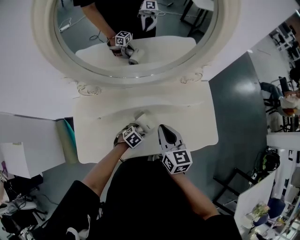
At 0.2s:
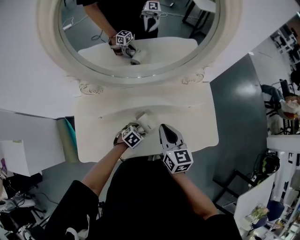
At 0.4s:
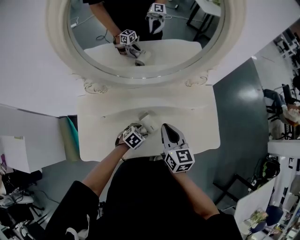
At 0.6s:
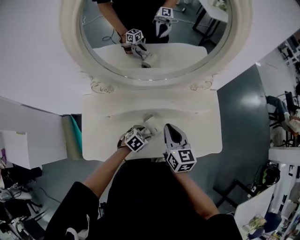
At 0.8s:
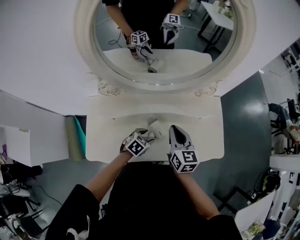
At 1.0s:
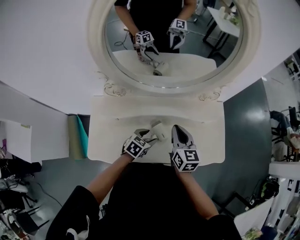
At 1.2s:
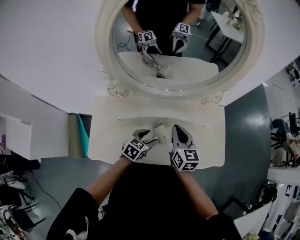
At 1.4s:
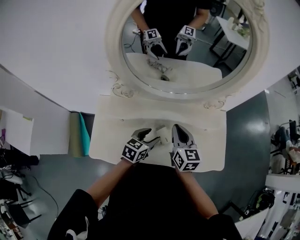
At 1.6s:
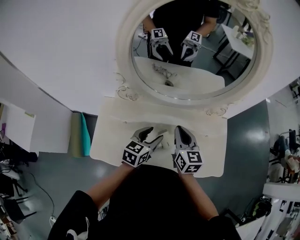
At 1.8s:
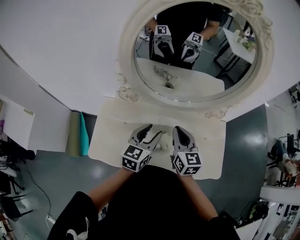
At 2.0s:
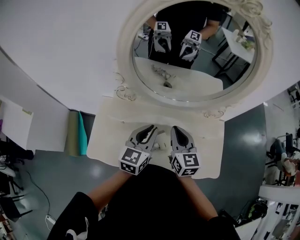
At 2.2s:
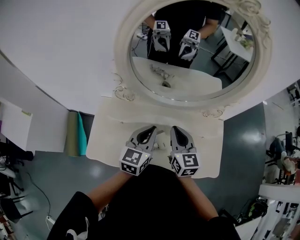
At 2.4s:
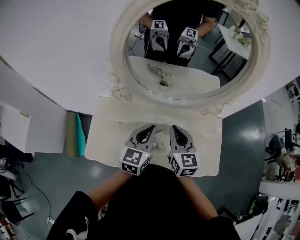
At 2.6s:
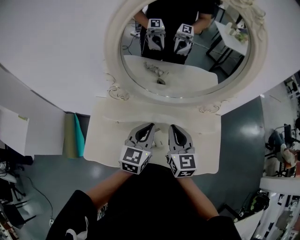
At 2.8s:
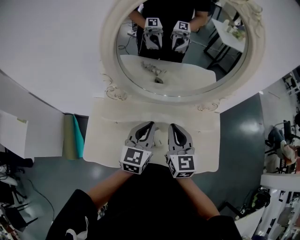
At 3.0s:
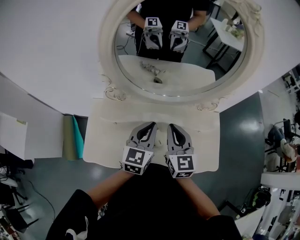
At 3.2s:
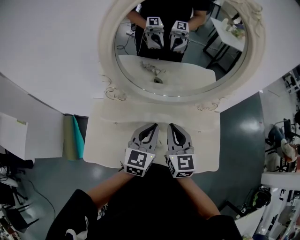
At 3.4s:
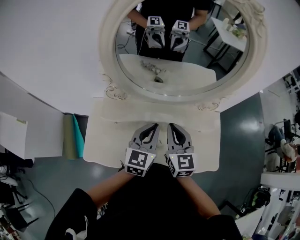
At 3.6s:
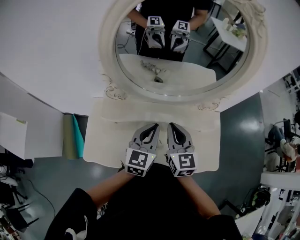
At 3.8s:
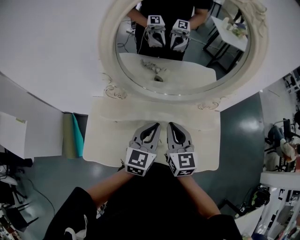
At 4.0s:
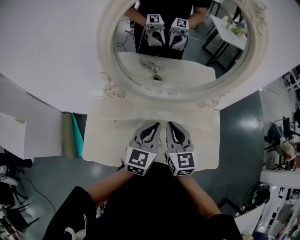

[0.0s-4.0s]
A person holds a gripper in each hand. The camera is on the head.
0.0s to 1.4s: The left gripper shifts roughly 20 cm upward, and angles its fingers upward, by approximately 30 degrees, while the right gripper is displaced to the left by approximately 5 cm.
1.4s to 2.6s: The left gripper is displaced upward by about 15 cm, turns by about 30 degrees, and closes. The right gripper shifts about 5 cm upward.
2.6s to 4.0s: The grippers stay close to where they were, moving slightly.

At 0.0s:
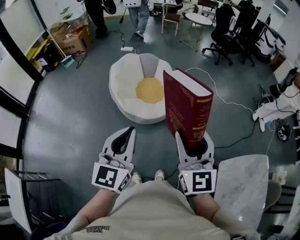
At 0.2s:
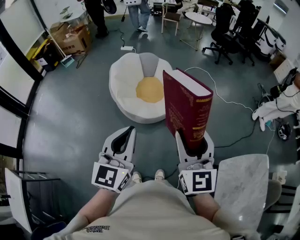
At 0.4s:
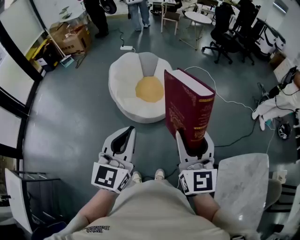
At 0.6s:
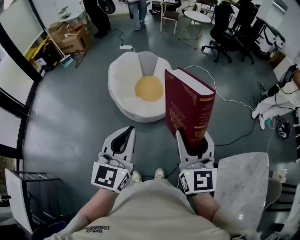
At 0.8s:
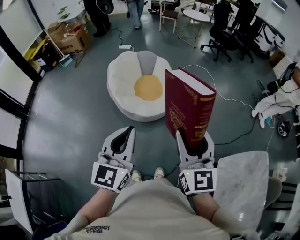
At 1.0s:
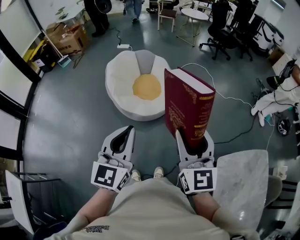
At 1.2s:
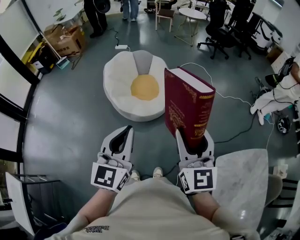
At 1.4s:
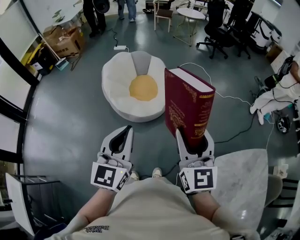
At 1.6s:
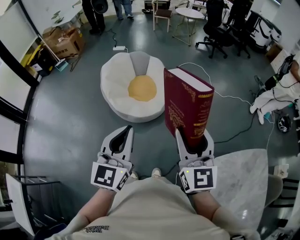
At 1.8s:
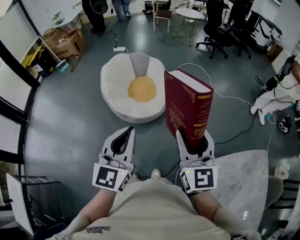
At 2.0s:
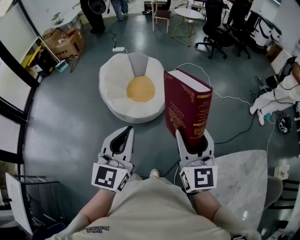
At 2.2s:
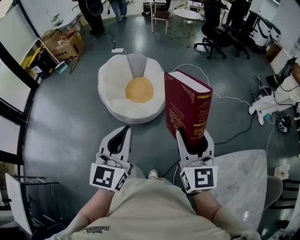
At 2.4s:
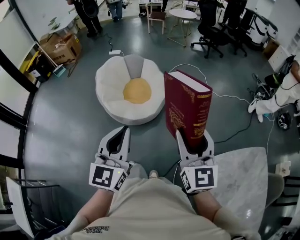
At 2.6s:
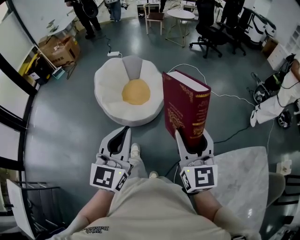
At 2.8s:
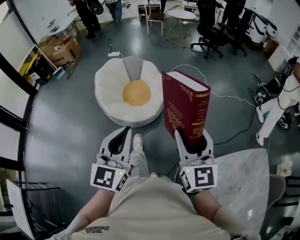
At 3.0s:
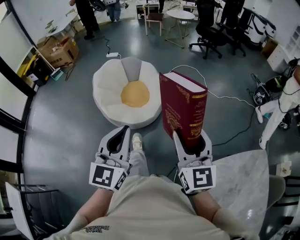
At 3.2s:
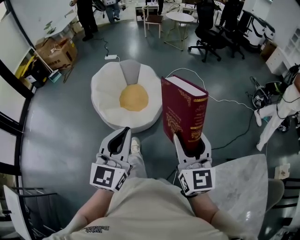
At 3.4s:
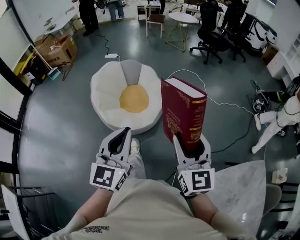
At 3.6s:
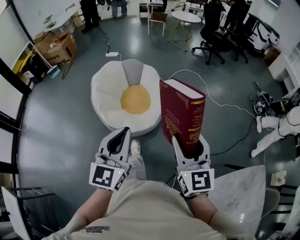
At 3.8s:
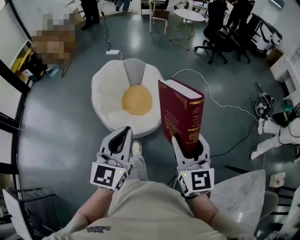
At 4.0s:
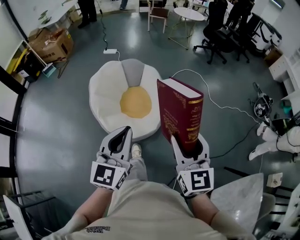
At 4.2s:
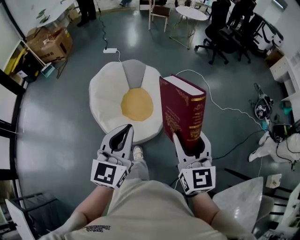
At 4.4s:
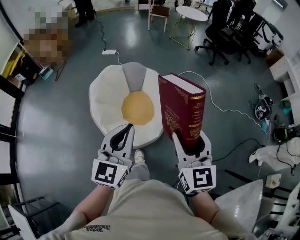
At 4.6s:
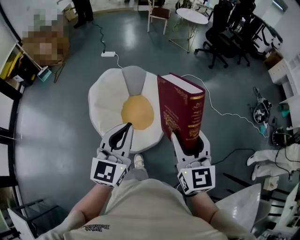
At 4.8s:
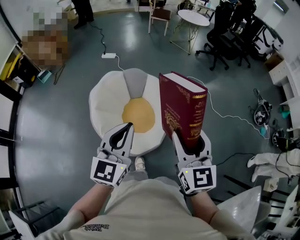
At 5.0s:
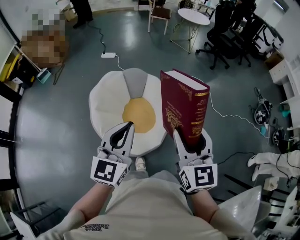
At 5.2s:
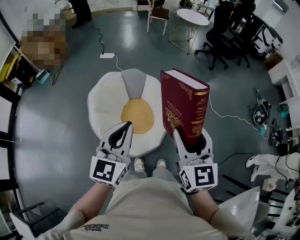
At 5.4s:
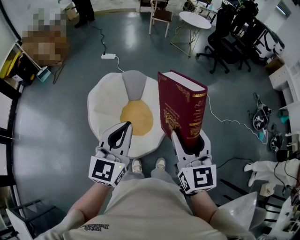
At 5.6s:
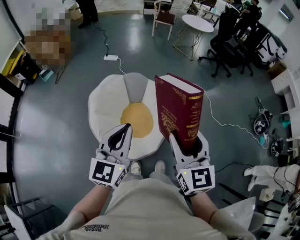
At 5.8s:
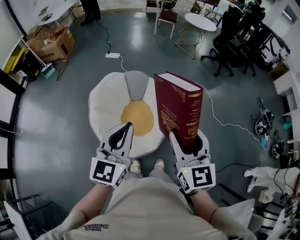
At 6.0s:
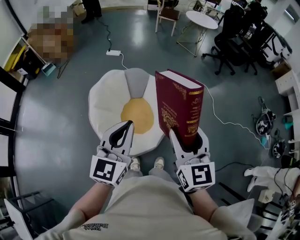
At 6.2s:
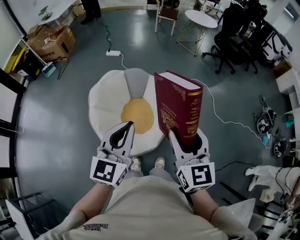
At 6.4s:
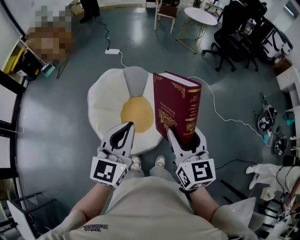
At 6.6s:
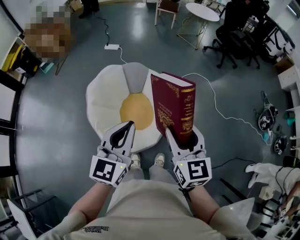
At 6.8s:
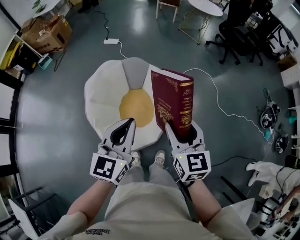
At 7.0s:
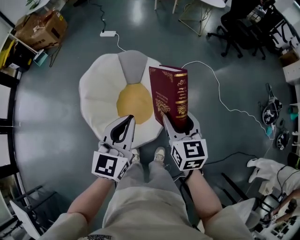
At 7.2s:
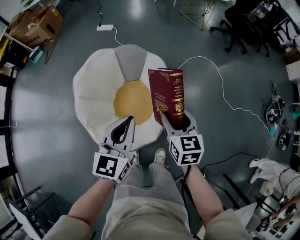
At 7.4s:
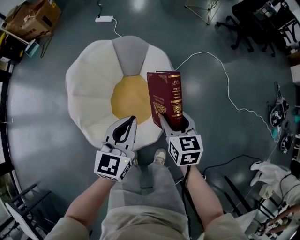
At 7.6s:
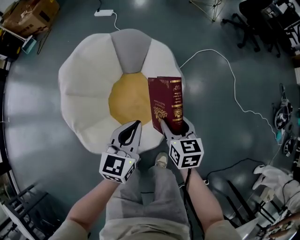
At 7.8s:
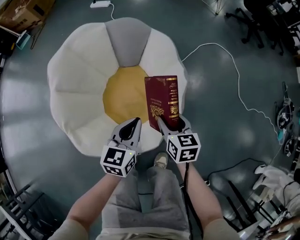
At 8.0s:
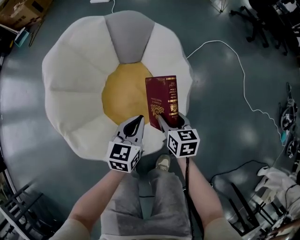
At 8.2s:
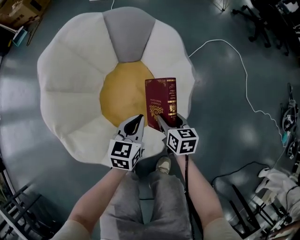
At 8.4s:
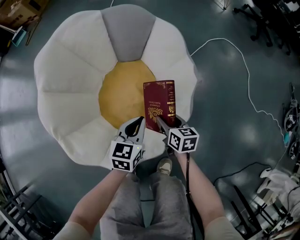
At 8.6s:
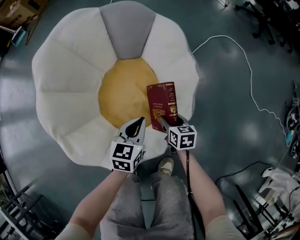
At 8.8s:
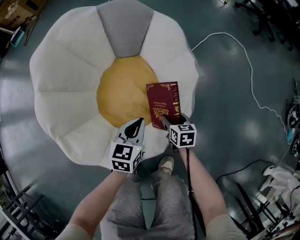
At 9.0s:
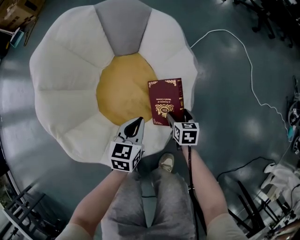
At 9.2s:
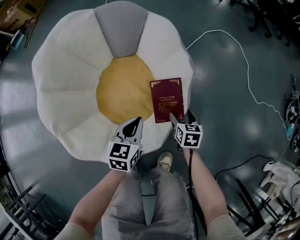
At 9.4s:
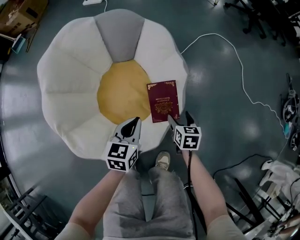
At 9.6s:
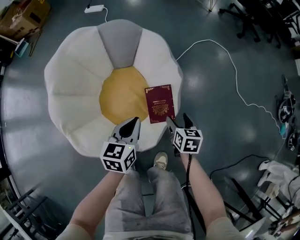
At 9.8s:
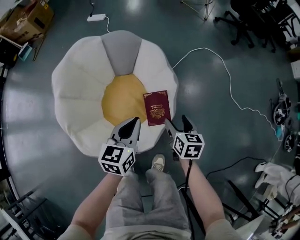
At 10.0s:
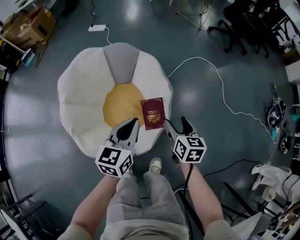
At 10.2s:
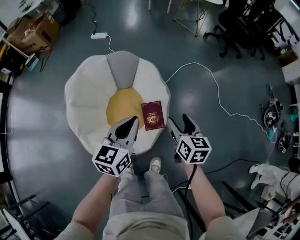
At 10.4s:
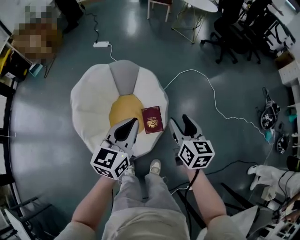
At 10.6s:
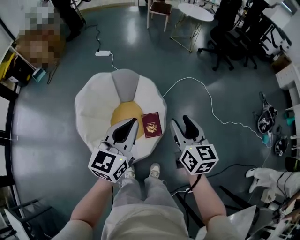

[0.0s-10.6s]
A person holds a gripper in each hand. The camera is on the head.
0.0s to 1.6s: The grippers both shift to the right by roughly 10 cm.
1.6s to 3.0s: The grippers stay close to where they were, moving slightly.
3.0s to 4.6s: The two grippers travel together, forward and to the left, roughly 40 cm.
4.6s to 6.0s: Both grippers travel together forward, roughly 10 cm.
6.0s to 7.6s: Both grippers travel together downward, approximately 50 cm. The right gripper swivels about 30 degrees. Meanwhile the left gripper swivels roughly 20 degrees.
7.6s to 9.0s: Both grippers travel together downward, roughly 35 cm.
9.0s to 10.6s: Both grippers move upward, some 70 cm. The right gripper angles its fingers upward, by some 40 degrees, and closes, while the left gripper turns by about 30 degrees.

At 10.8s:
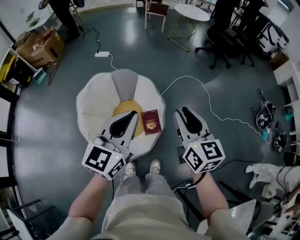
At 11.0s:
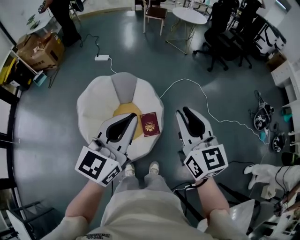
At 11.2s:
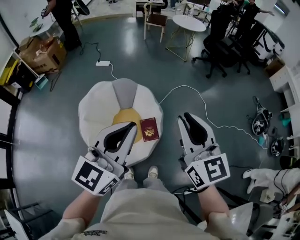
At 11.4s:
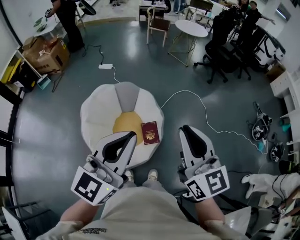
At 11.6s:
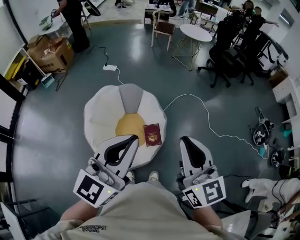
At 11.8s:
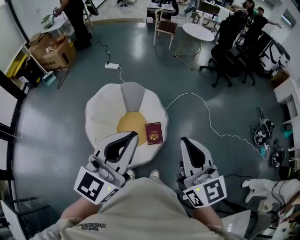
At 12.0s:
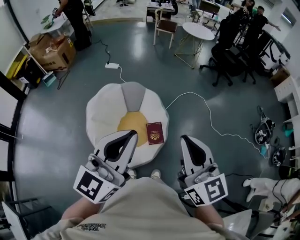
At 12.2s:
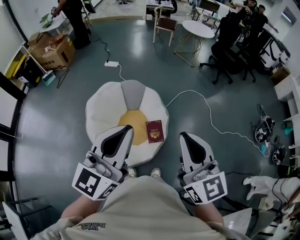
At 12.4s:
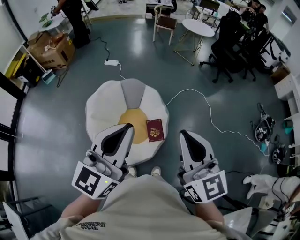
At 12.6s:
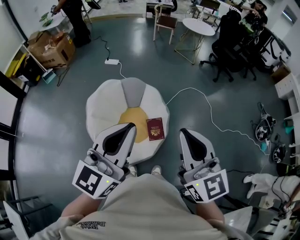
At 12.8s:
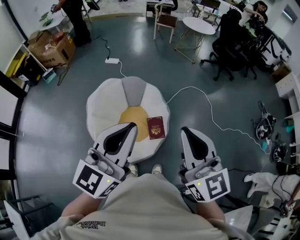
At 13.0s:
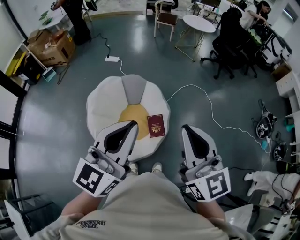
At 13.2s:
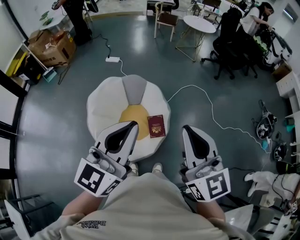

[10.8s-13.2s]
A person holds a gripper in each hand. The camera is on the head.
10.8s to 12.0s: Both grippers move upward and backward, roughly 15 cm. The right gripper closes its fingers.
12.0s to 13.2s: The grippers make only small movements.

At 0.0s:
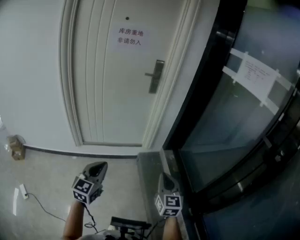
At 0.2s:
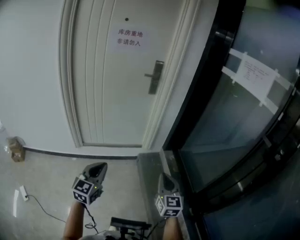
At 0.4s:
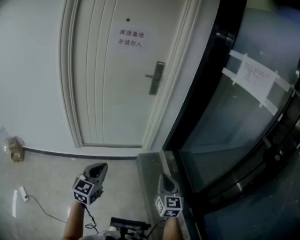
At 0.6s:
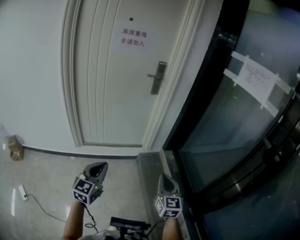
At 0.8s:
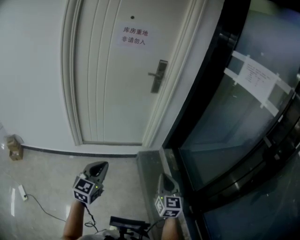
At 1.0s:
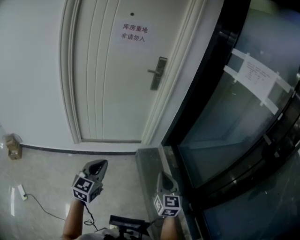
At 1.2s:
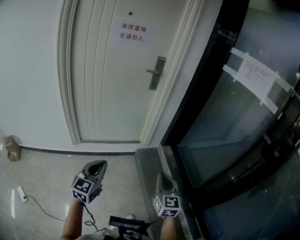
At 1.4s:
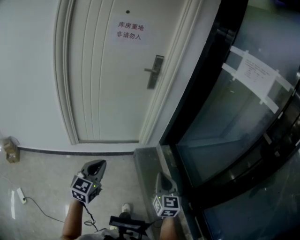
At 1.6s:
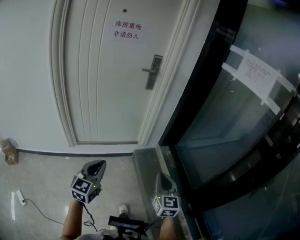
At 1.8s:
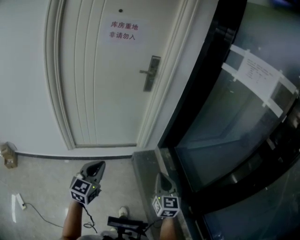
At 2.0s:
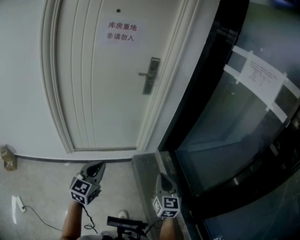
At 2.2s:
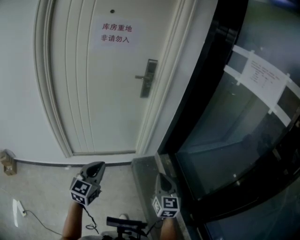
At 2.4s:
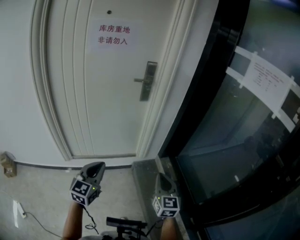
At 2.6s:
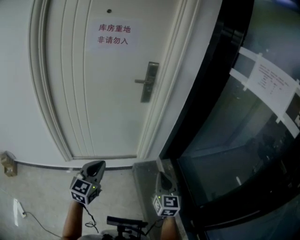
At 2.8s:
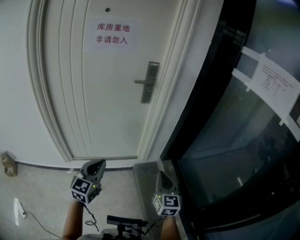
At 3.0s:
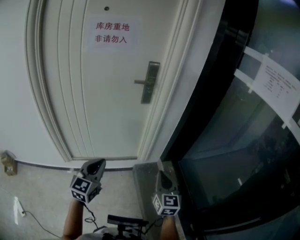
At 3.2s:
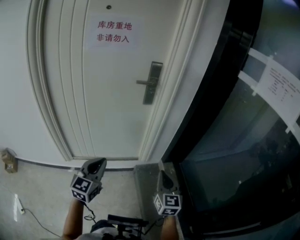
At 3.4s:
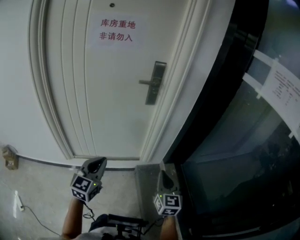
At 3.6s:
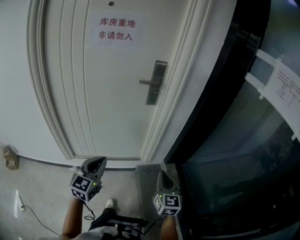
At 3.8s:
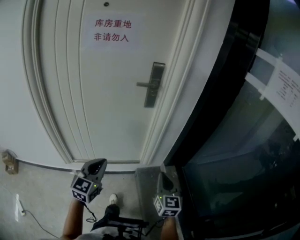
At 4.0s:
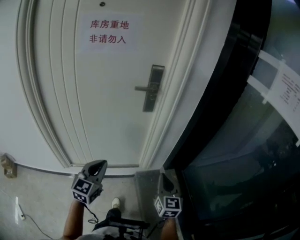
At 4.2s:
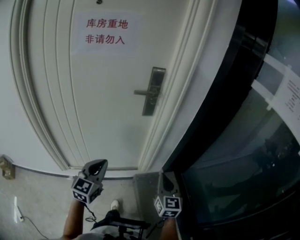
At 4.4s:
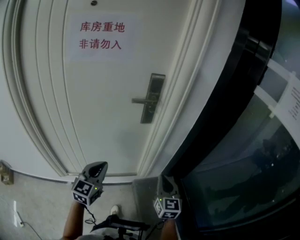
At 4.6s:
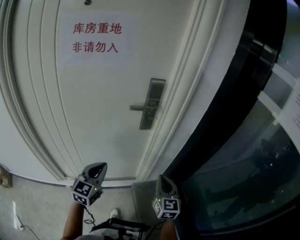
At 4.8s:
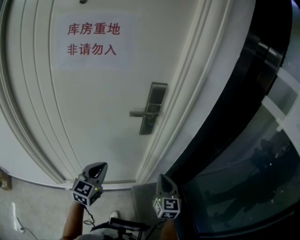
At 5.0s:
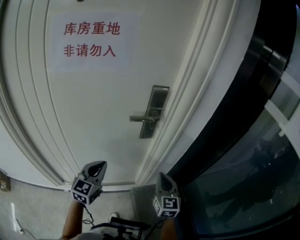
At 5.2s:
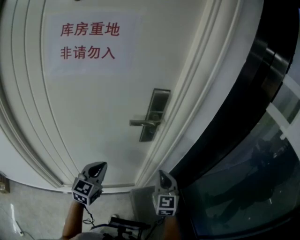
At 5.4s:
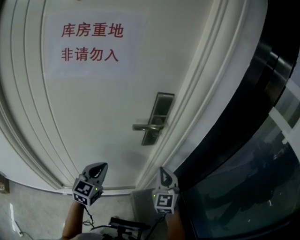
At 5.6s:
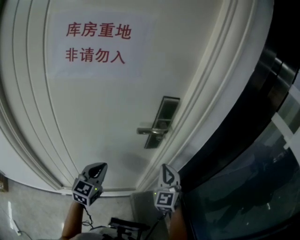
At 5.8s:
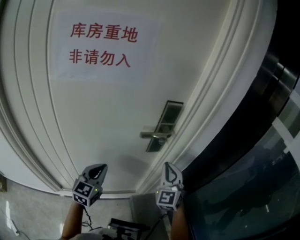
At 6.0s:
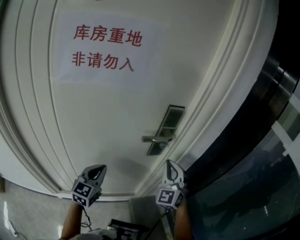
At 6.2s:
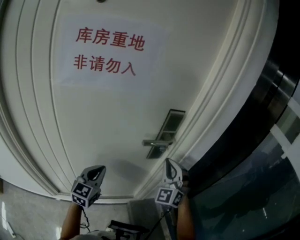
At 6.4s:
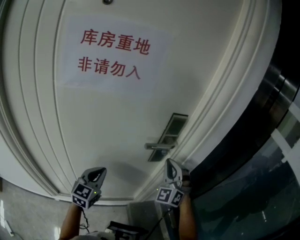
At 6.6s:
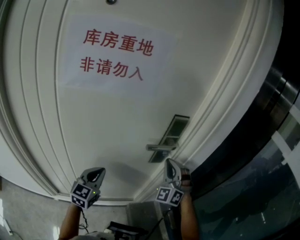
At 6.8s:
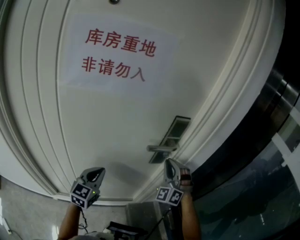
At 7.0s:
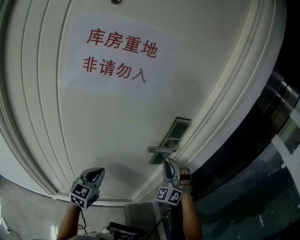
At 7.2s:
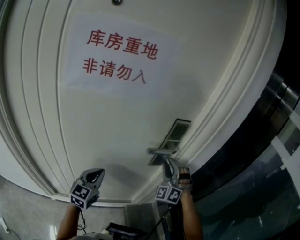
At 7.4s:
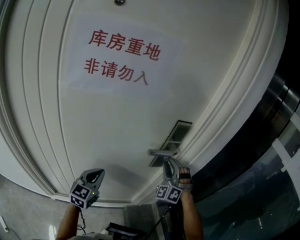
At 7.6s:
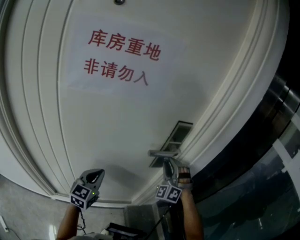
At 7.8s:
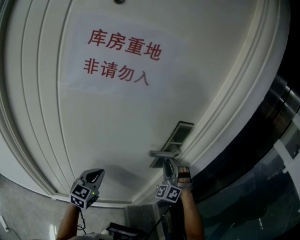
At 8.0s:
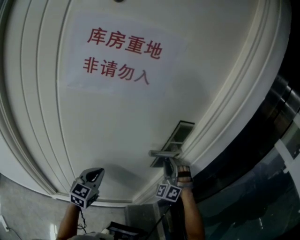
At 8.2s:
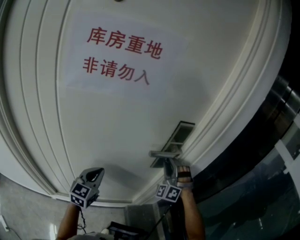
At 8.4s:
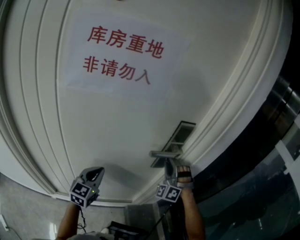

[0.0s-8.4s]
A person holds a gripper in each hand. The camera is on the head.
0.0s to 1.4s: There are only small adjustments of the grippers.
1.4s to 2.8s: The two grippers go roughly 25 cm forward.
2.8s to 4.2s: Both grippers move forward, roughly 15 cm.
4.2s to 5.6s: The grippers both shift forward by roughly 25 cm. The right gripper swivels approximately 30 degrees.
5.6s to 7.0s: The left gripper is displaced to the left by approximately 5 cm, while the right gripper shifts some 10 cm forward, and twists some 40 degrees counterclockwise, seen from behind.
7.0s to 8.4s: The grippers make only small movements.
